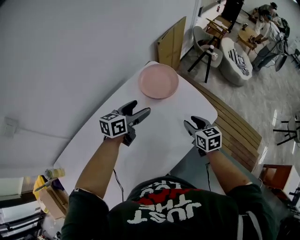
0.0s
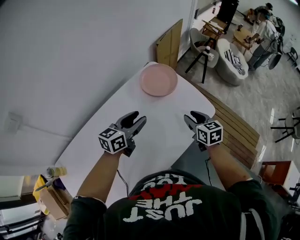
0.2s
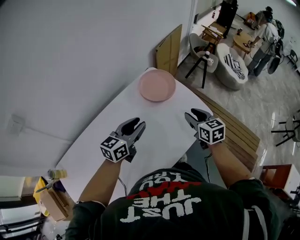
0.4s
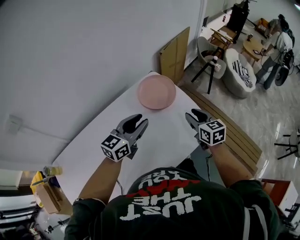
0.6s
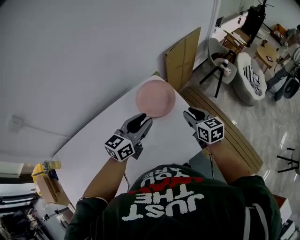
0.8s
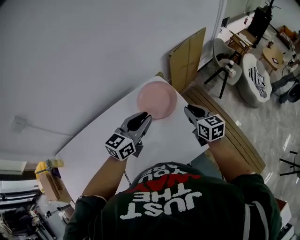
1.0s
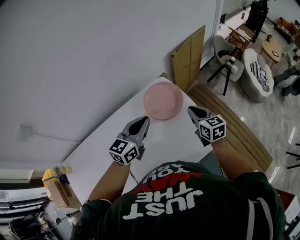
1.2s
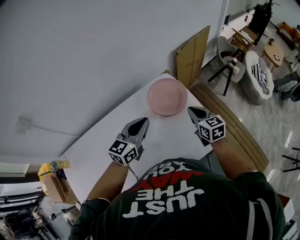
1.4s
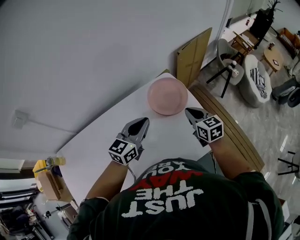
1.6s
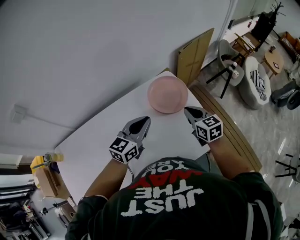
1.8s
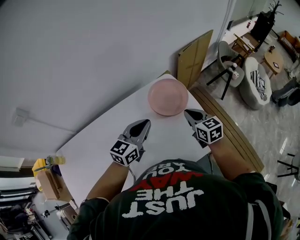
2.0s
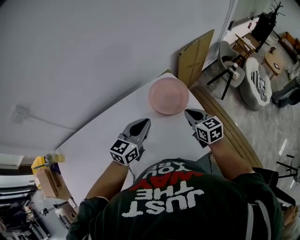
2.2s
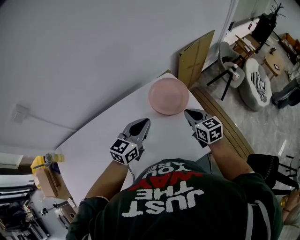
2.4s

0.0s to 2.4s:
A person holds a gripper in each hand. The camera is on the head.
0.0s to 1.2s: The right gripper shifts roughly 20 cm forward, and closes its fingers. Meanwhile the left gripper goes some 10 cm upward and to the right, moves roughly 10 cm backward and comes back, changes its angle by some 30 degrees, and closes.
1.2s to 2.4s: The right gripper is displaced to the left by some 5 cm. The left gripper ends up roughly 5 cm from where it was.

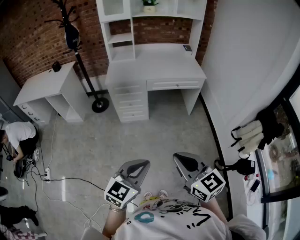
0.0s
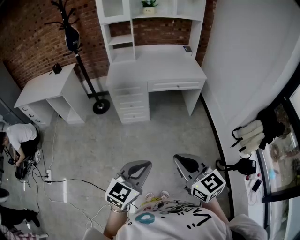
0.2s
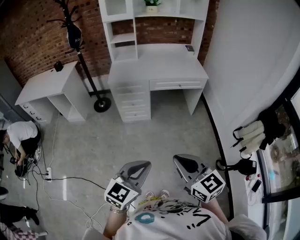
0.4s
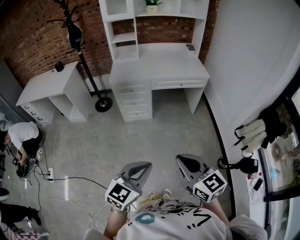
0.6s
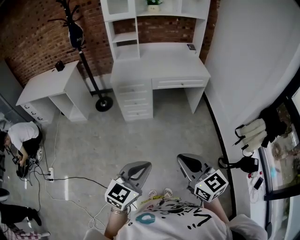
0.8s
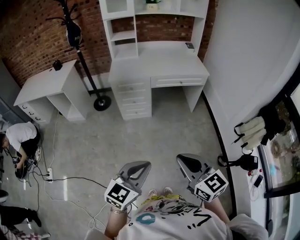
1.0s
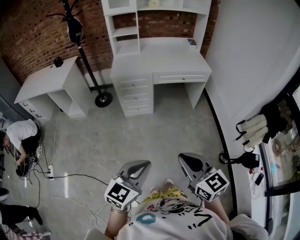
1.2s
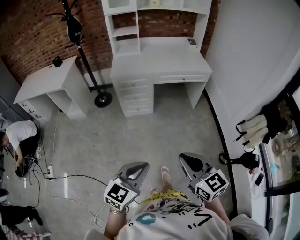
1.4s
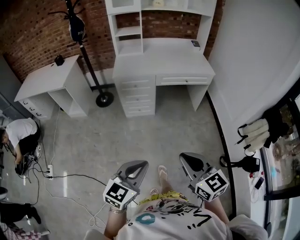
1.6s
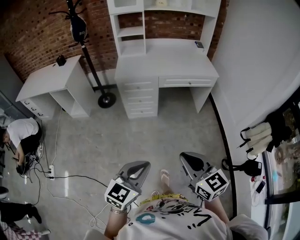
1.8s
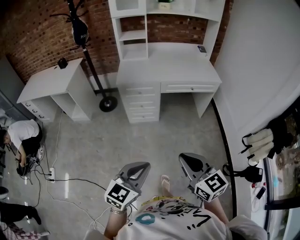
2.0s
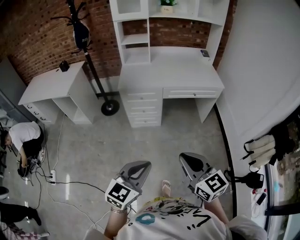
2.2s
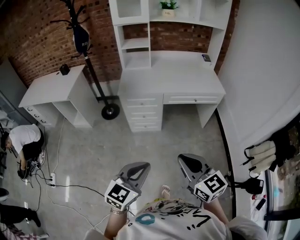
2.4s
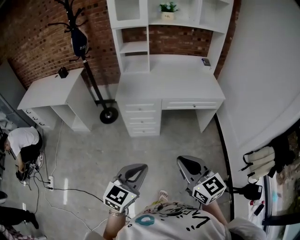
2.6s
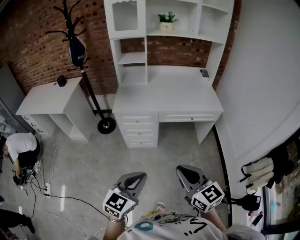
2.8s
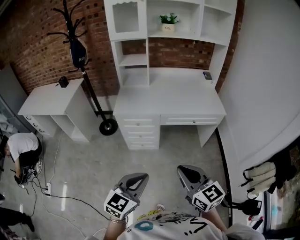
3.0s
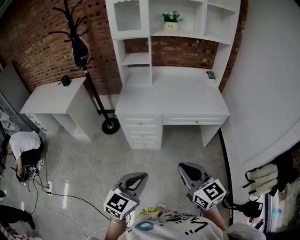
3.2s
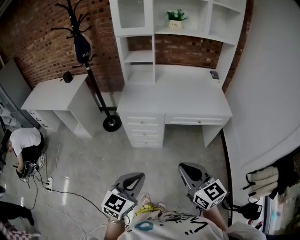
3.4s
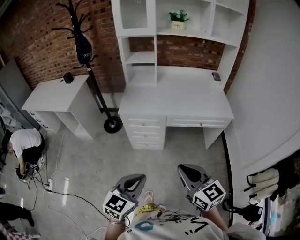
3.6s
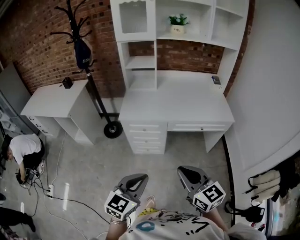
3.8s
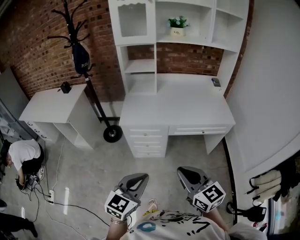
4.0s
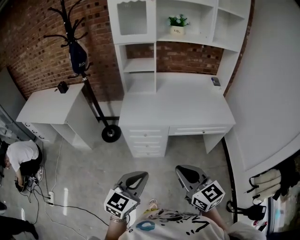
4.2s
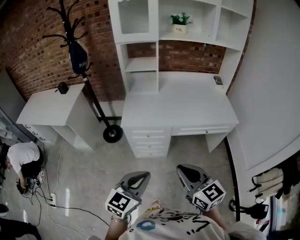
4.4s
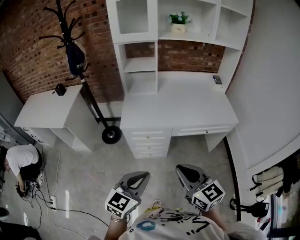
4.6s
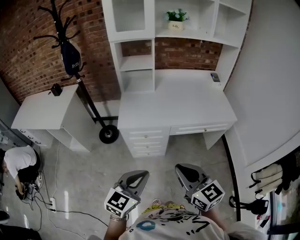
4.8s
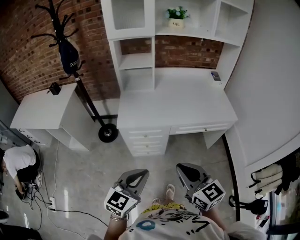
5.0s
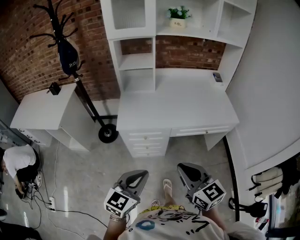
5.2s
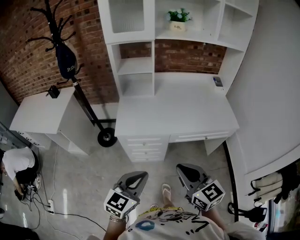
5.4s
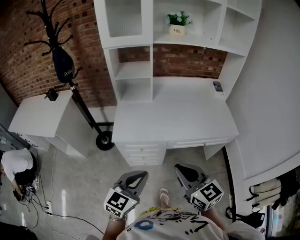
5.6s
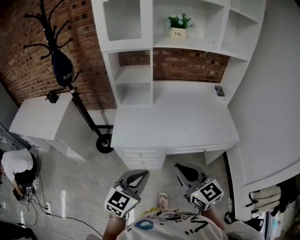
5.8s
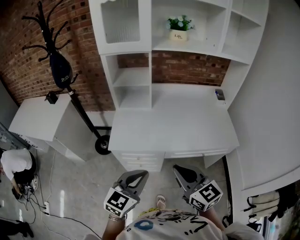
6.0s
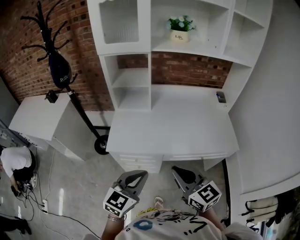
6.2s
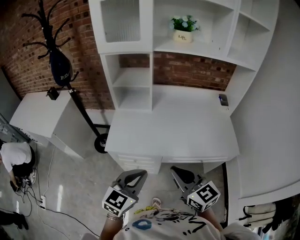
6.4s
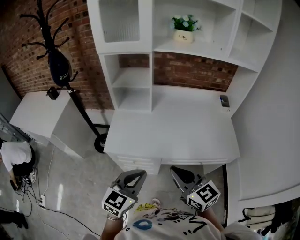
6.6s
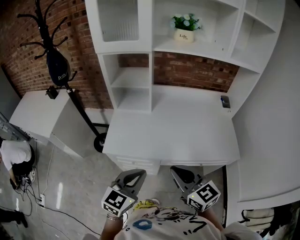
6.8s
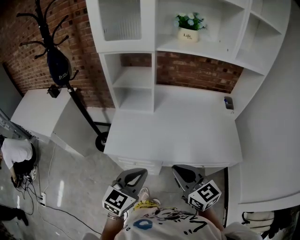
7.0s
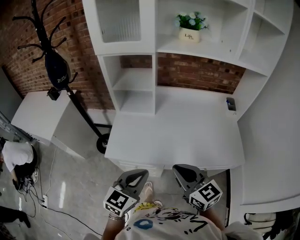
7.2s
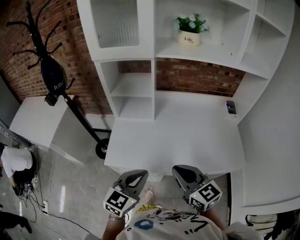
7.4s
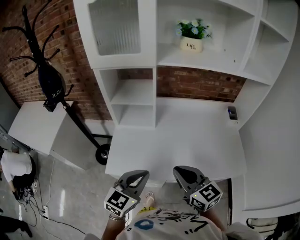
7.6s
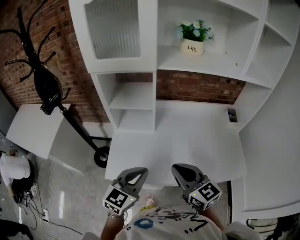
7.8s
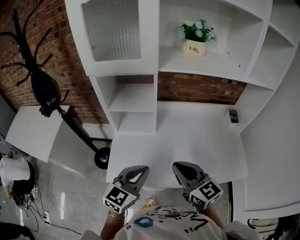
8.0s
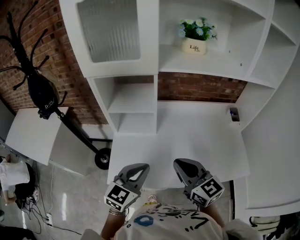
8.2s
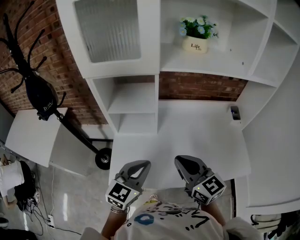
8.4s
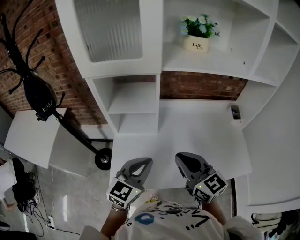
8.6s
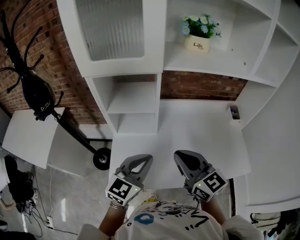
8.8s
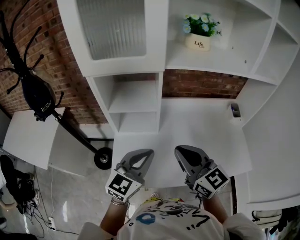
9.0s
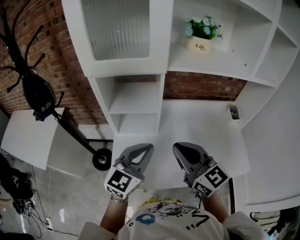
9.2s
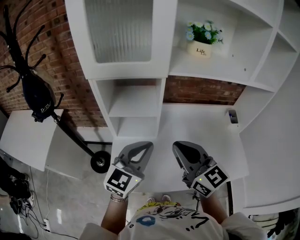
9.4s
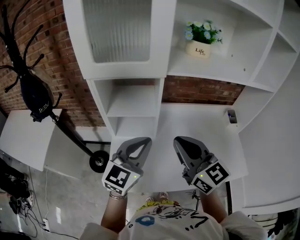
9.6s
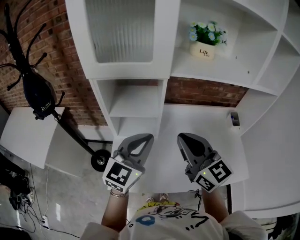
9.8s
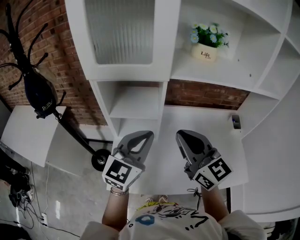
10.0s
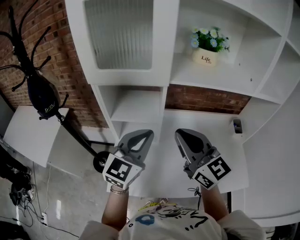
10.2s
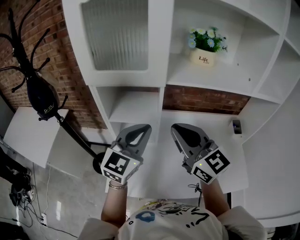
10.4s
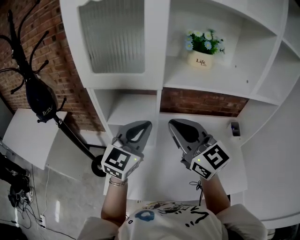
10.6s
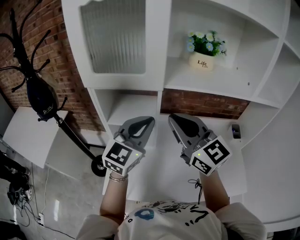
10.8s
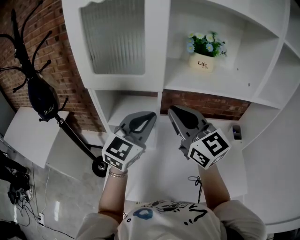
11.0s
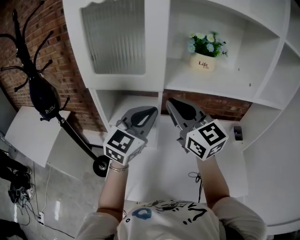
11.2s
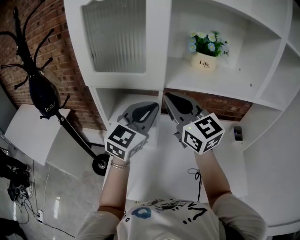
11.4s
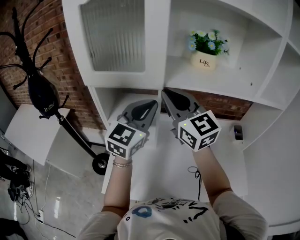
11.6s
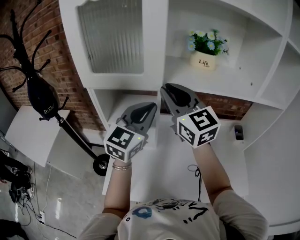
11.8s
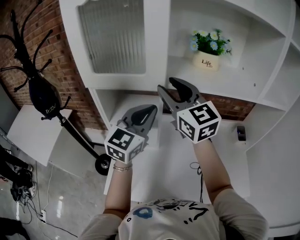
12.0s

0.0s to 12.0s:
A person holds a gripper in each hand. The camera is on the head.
0.0s to 1.6s: The right gripper shifts by roughly 5 cm; the left gripper shifts roughly 10 cm to the left.
1.6s to 3.0s: The grippers both shift forward by about 25 cm.
3.0s to 4.4s: Both grippers travel together forward and to the left, approximately 15 cm.
4.4s to 6.0s: The two grippers go roughly 20 cm forward.
6.0s to 7.6s: The two grippers go about 20 cm forward.
7.6s to 9.0s: The left gripper shifts some 15 cm forward, while the right gripper is displaced forward, upward and to the left by about 15 cm.
9.0s to 10.4s: The left gripper moves forward and upward, approximately 15 cm. The right gripper travels upward and forward by approximately 15 cm.
10.4s to 12.0s: The left gripper shifts roughly 5 cm forward. Meanwhile the right gripper goes some 15 cm forward and upward, and opens its fingers.

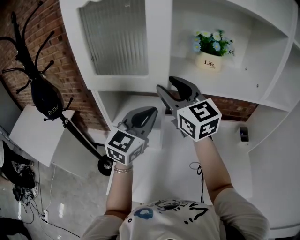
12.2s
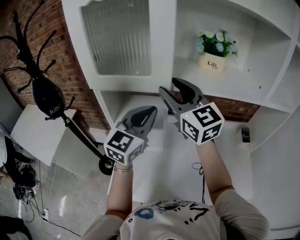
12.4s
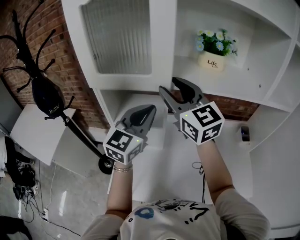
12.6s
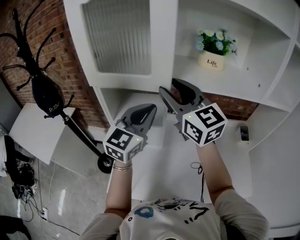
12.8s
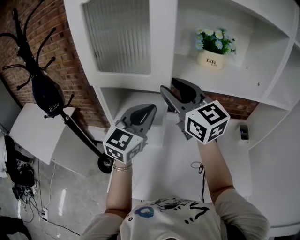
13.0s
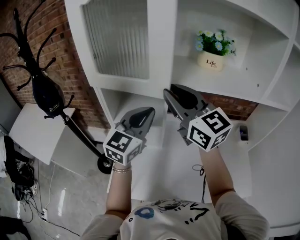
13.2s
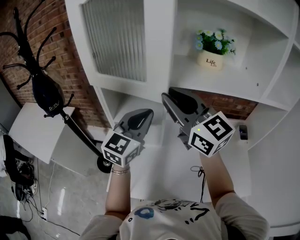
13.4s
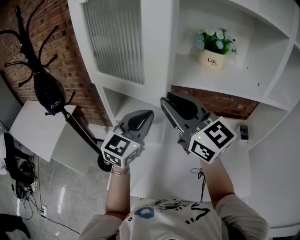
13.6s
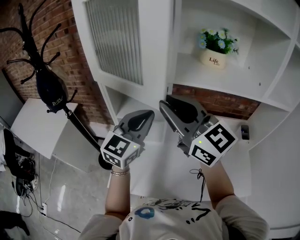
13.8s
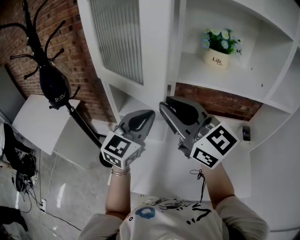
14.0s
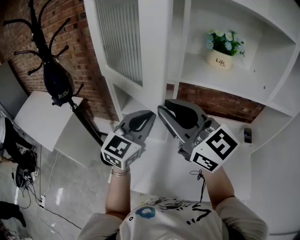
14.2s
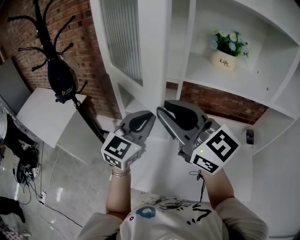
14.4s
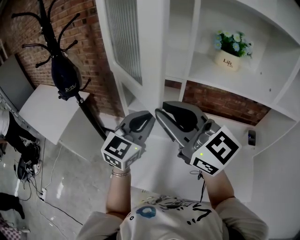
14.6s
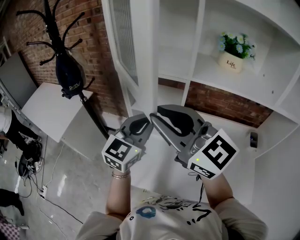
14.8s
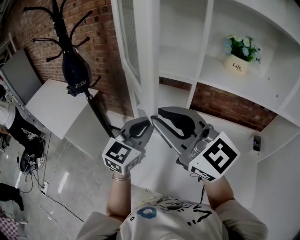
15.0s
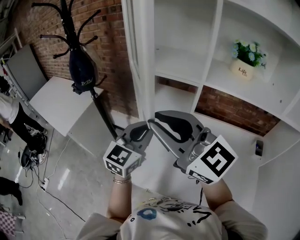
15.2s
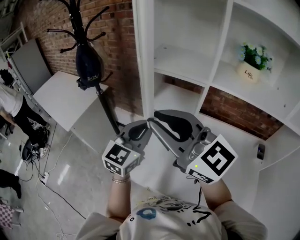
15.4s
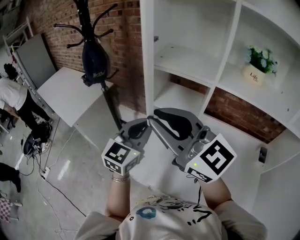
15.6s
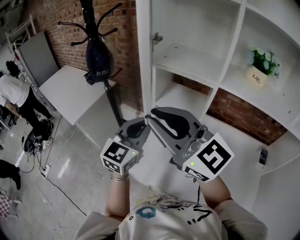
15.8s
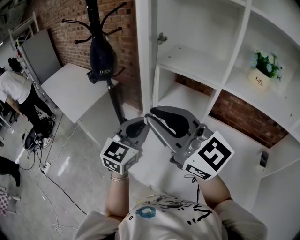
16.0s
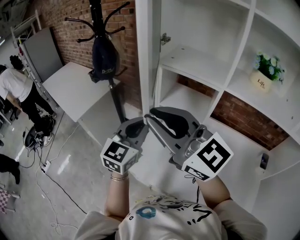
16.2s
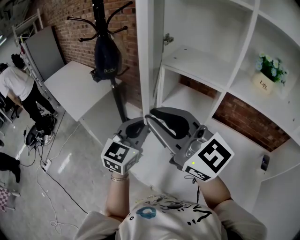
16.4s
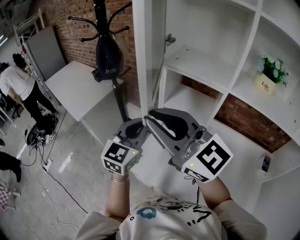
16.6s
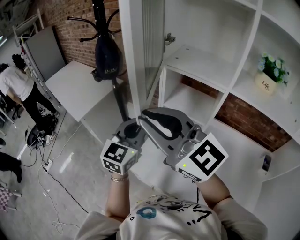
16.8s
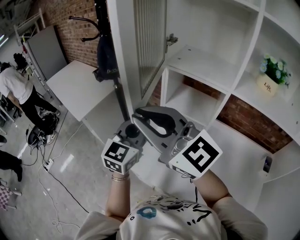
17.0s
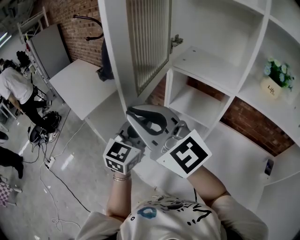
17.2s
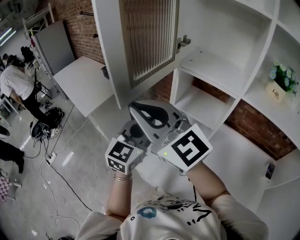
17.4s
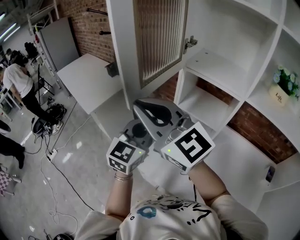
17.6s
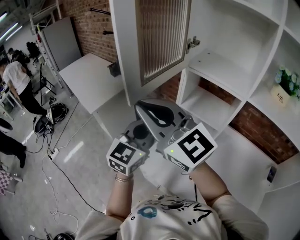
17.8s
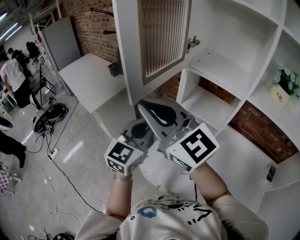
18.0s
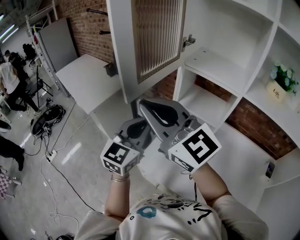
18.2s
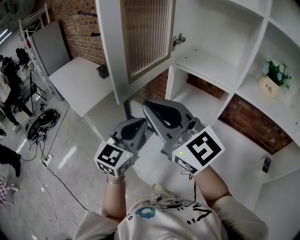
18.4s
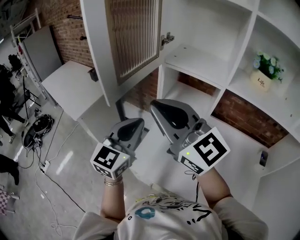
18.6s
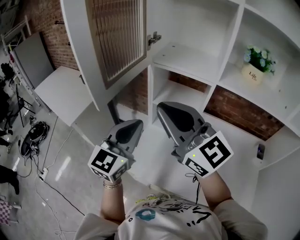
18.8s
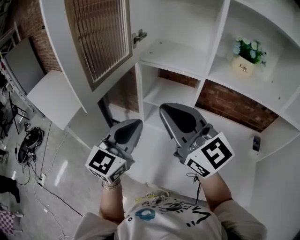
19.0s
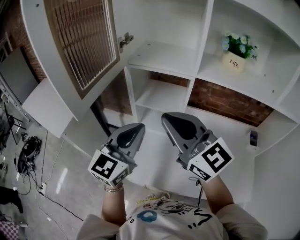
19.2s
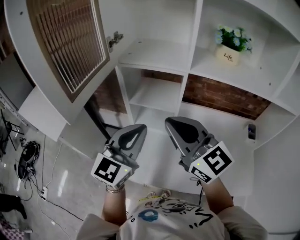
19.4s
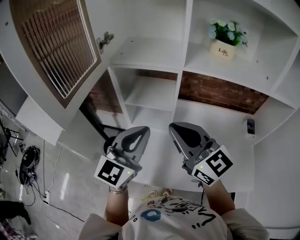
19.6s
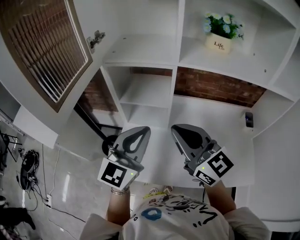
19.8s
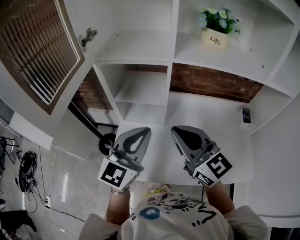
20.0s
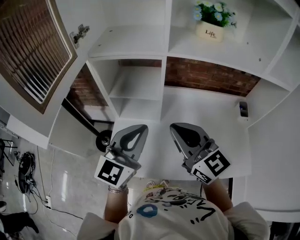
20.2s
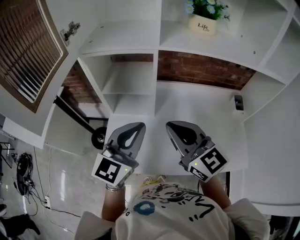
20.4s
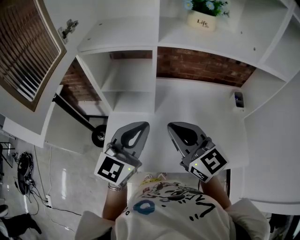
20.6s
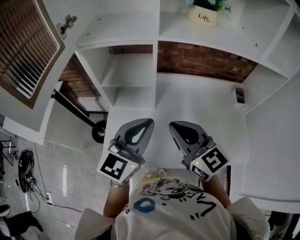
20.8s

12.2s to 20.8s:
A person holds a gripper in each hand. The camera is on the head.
12.2s to 13.6s: The right gripper heads backward, covering roughly 10 cm, and closes.
13.6s to 15.0s: The two grippers go some 10 cm to the left and backward.
15.0s to 16.6s: Both grippers travel together to the left, about 10 cm.
16.6s to 18.0s: The right gripper heads to the left, covering some 10 cm.
18.0s to 19.4s: The right gripper changes place by some 25 cm, and turns by about 30 degrees, while the left gripper shifts by about 15 cm, and swivels roughly 20 degrees.
19.4s to 20.8s: The left gripper is displaced to the right and downward by about 10 cm; the right gripper moves downward and to the right, roughly 15 cm.
